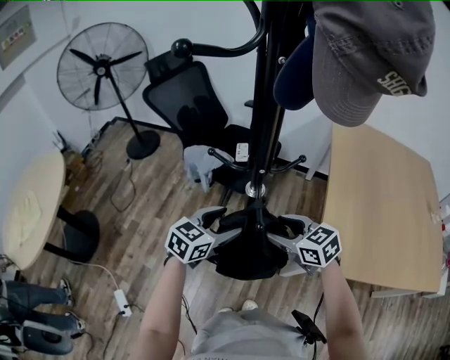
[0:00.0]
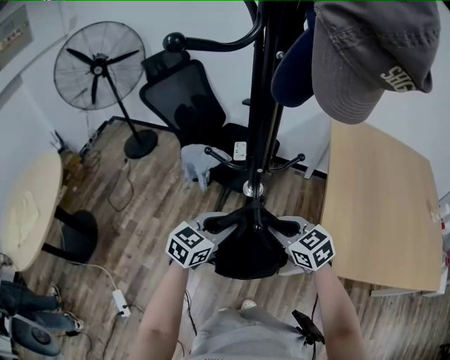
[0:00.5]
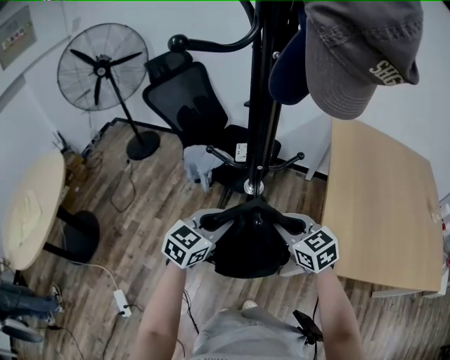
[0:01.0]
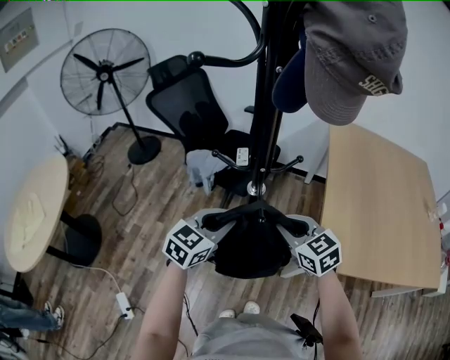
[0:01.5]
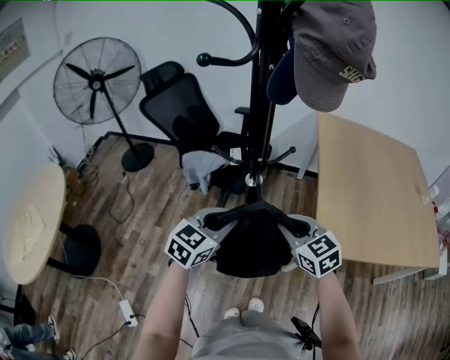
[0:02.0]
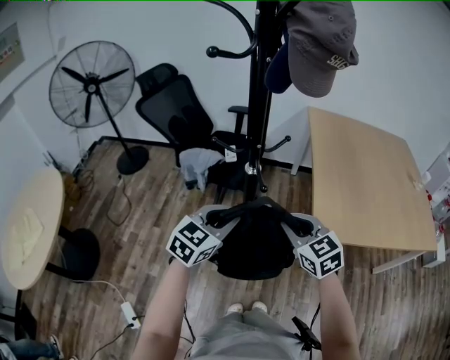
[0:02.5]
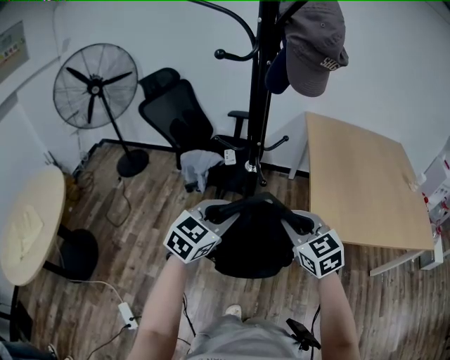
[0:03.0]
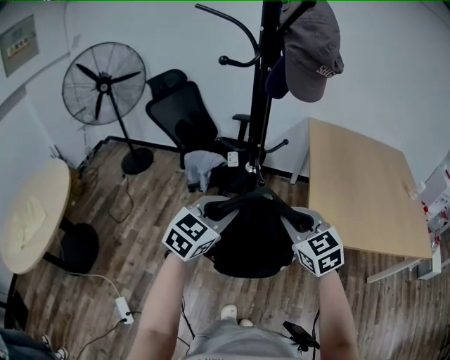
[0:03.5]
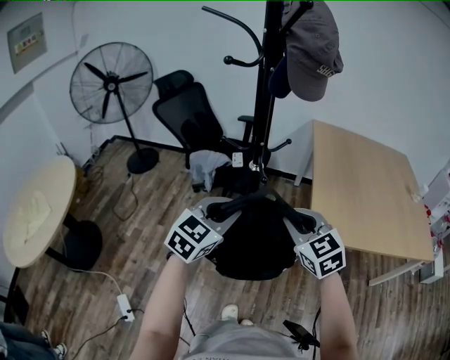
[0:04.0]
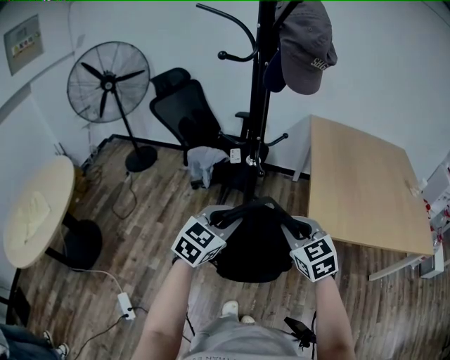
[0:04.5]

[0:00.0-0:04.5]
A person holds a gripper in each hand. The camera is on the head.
0:00.0 to 0:02.0: Both grippers travel together upward and backward, roughly 10 cm. The left gripper closes its fingers. The right gripper turns by roughly 20 degrees, and closes up.
0:02.0 to 0:04.5: Both grippers move backward, about 10 cm.

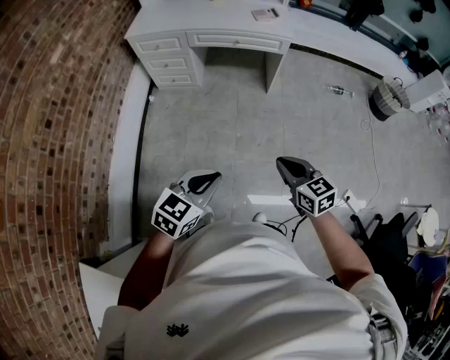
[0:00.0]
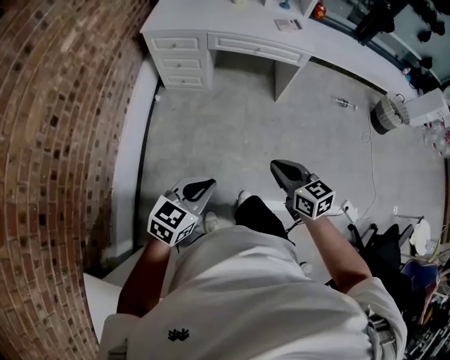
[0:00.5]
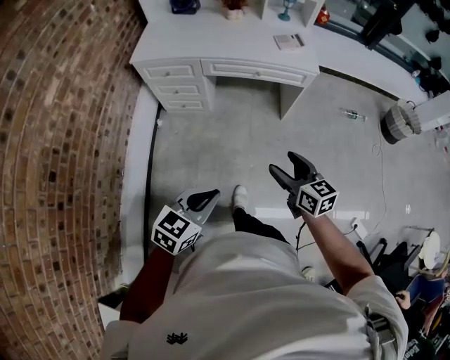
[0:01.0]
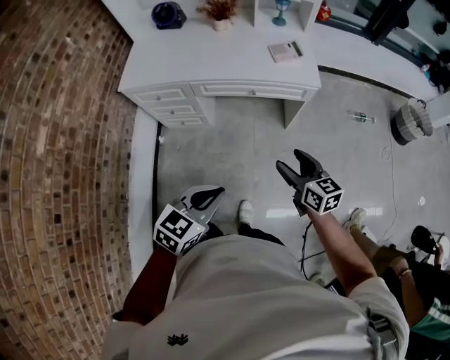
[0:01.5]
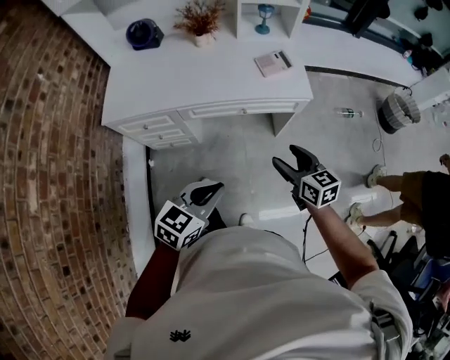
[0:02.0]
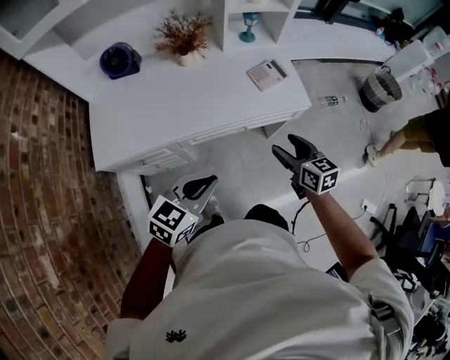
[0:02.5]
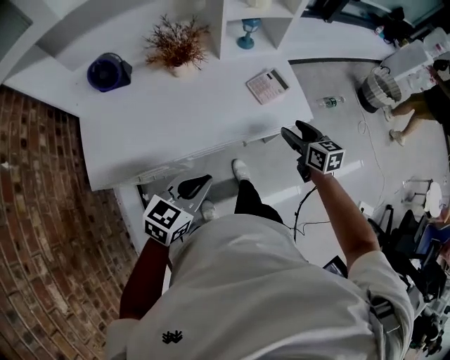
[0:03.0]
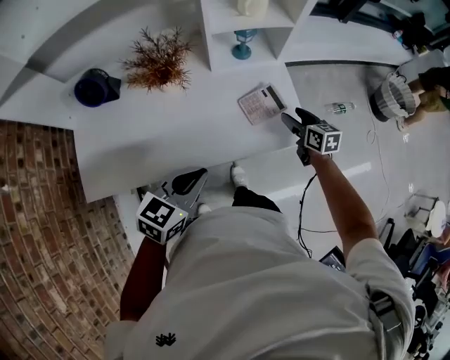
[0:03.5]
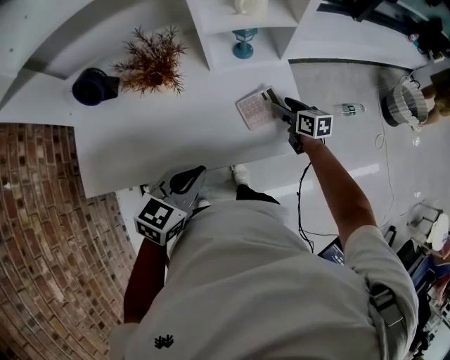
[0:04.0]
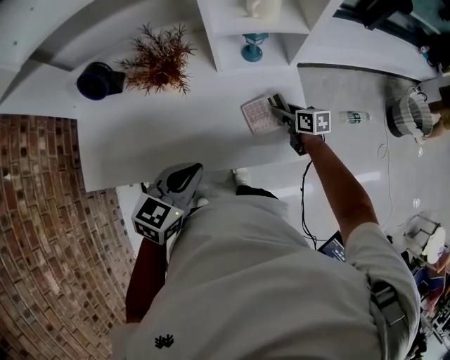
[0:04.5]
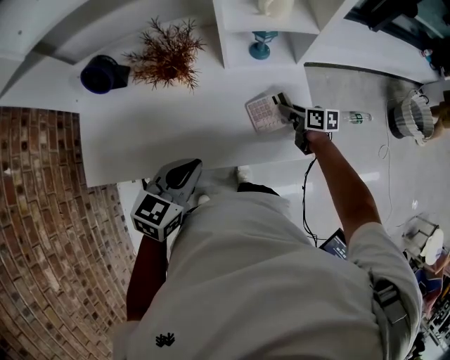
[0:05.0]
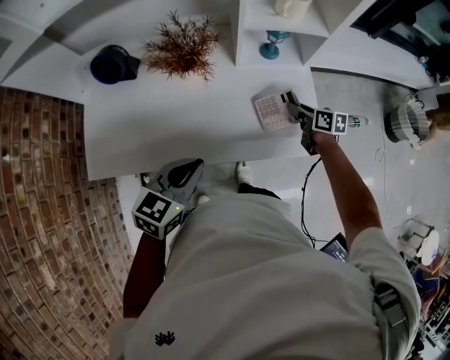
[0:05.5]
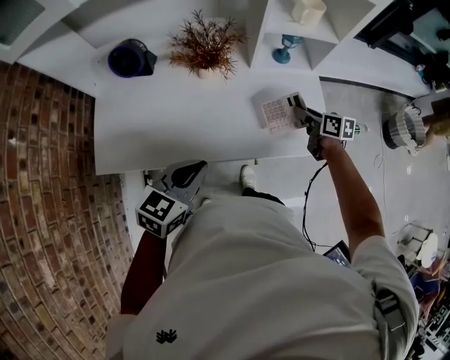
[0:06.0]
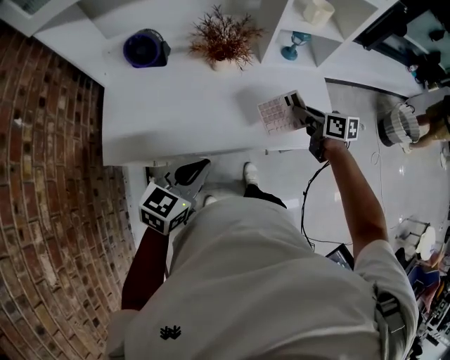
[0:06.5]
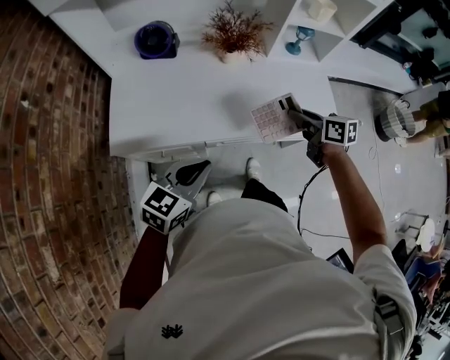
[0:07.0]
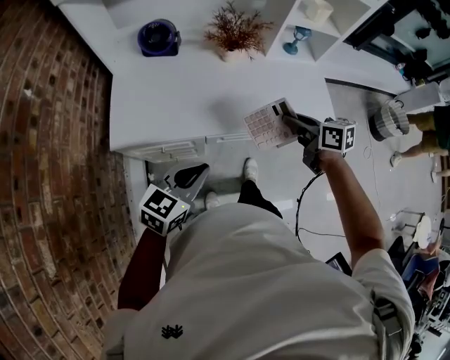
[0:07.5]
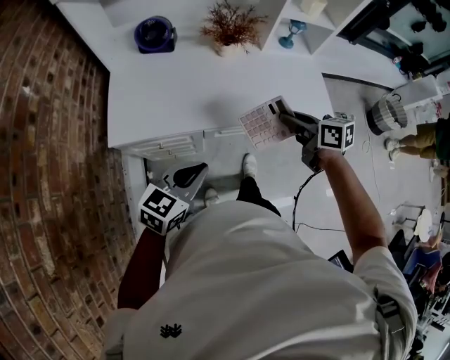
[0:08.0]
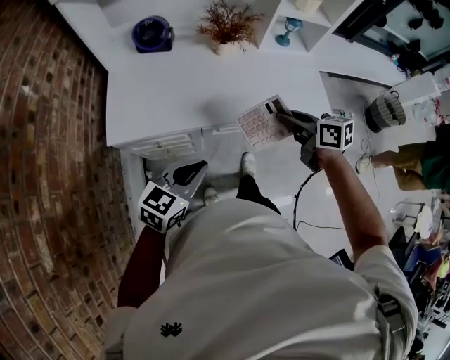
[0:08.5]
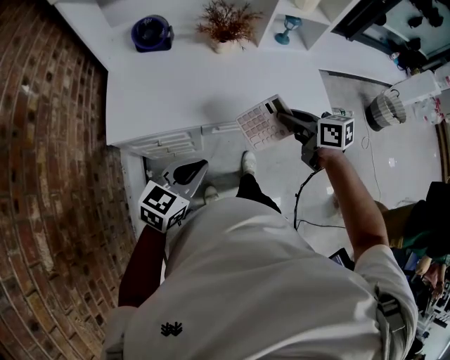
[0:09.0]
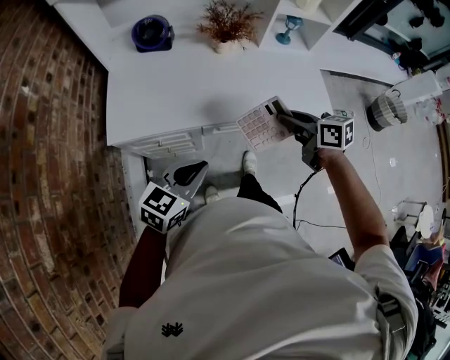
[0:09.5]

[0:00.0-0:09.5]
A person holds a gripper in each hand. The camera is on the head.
0:00.0 to 0:02.0: Both grippers are carried forward, some 50 cm. The right gripper opens up.
0:02.0 to 0:04.0: Both grippers move forward, some 40 cm.
0:04.0 to 0:05.5: The left gripper travels to the left by some 5 cm. The right gripper closes its fingers.
0:05.5 to 0:07.5: The right gripper goes about 35 cm to the left, backward and upward, while the left gripper travels backward and to the left by about 25 cm.
0:07.5 to 0:09.5: The grippers stay close to where they were, moving slightly.

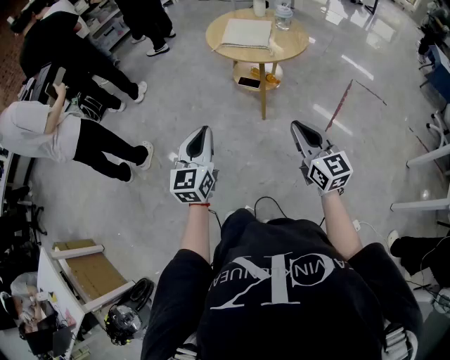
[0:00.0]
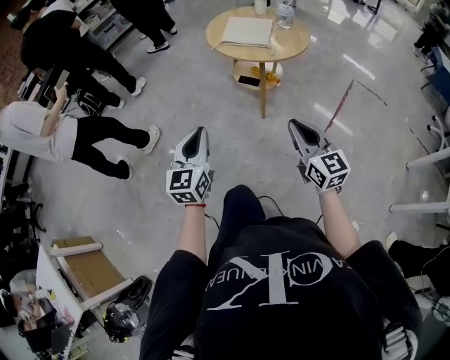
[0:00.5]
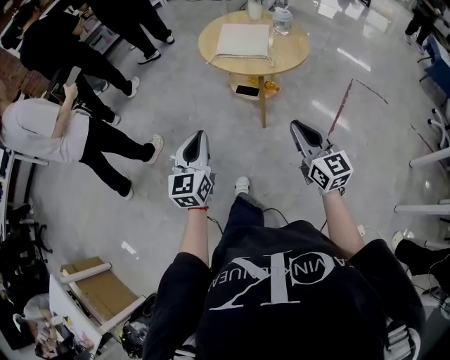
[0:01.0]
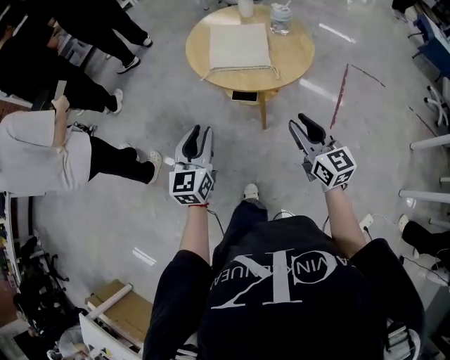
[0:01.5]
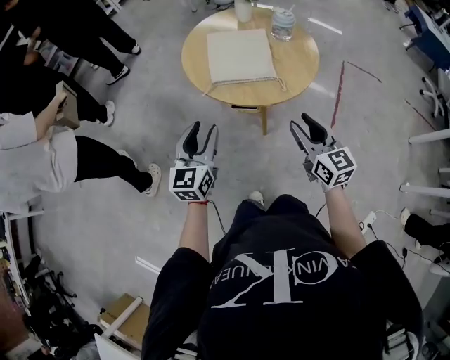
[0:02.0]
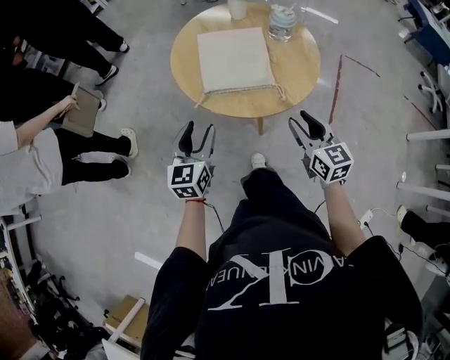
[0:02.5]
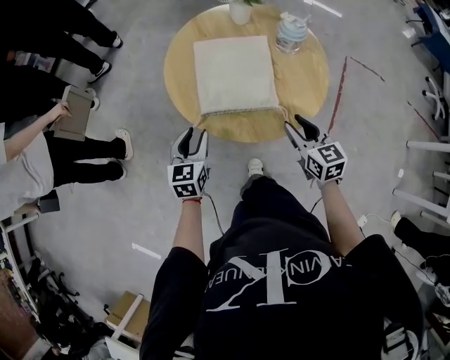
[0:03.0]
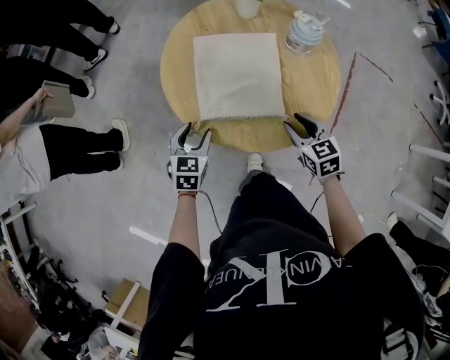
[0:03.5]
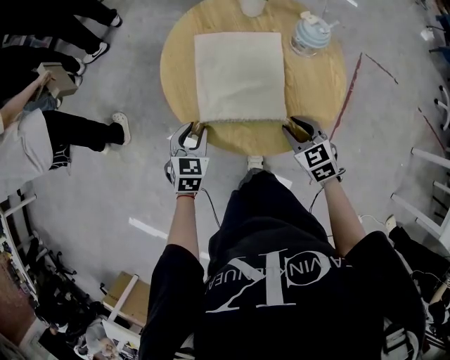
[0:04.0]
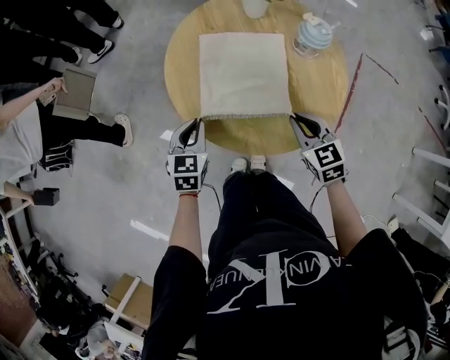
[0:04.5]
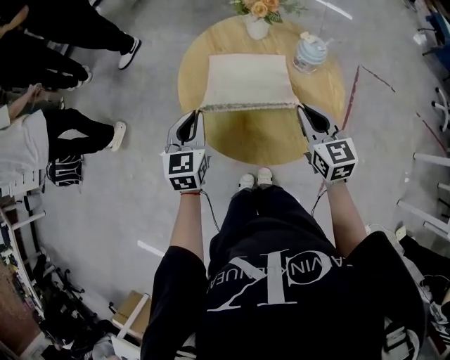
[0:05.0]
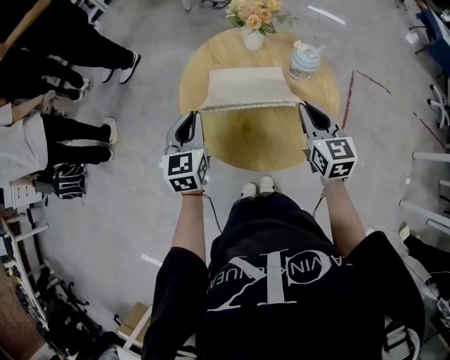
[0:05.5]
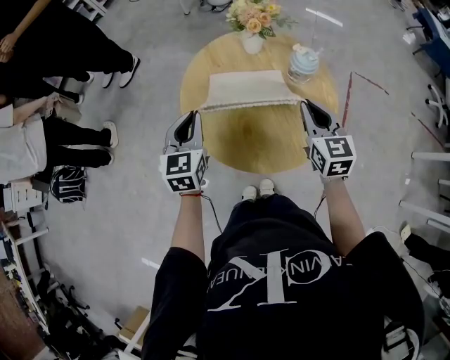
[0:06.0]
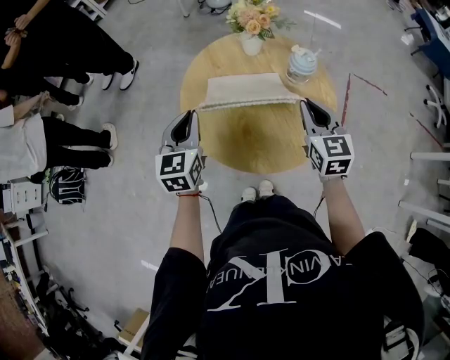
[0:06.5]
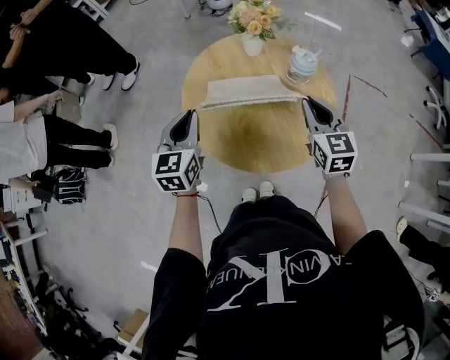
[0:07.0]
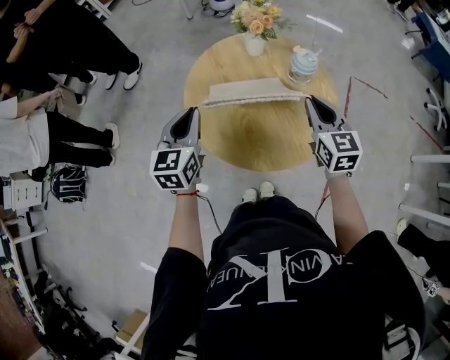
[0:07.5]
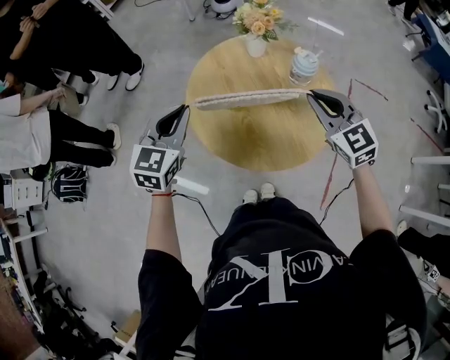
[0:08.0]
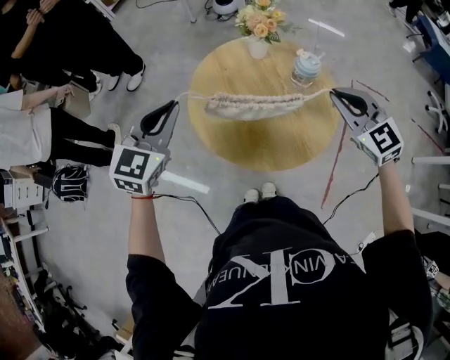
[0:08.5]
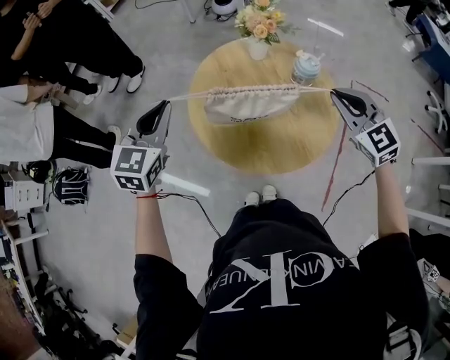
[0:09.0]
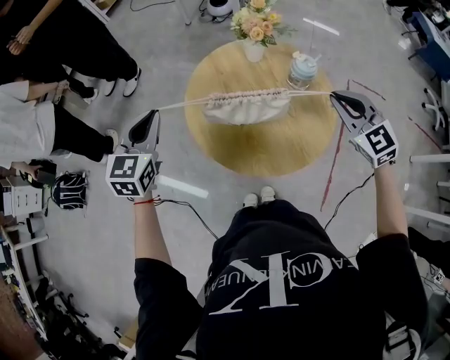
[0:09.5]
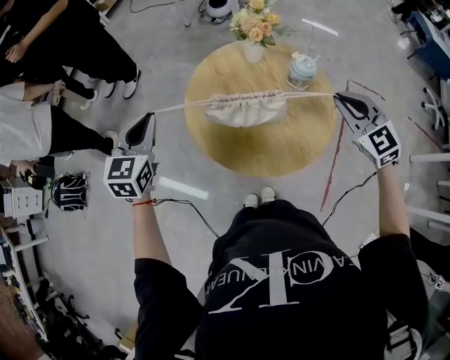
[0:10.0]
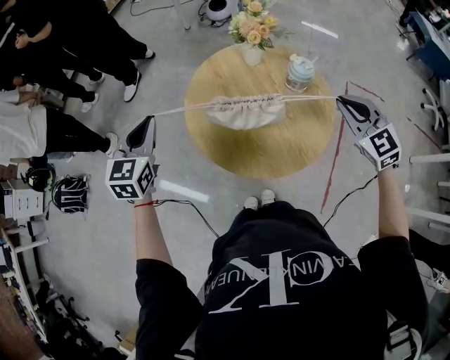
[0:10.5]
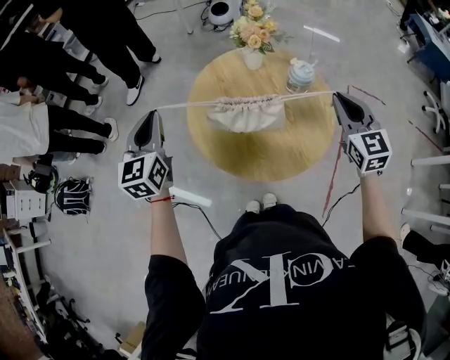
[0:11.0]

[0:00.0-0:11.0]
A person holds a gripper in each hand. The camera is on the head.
0:00.0 to 0:02.0: The grippers both shift forward by approximately 35 cm. The right gripper opens up; the left gripper opens.
0:02.0 to 0:03.5: Both grippers travel together forward and downward, about 25 cm. The right gripper turns by about 30 degrees; the left gripper tips its fingers downward by some 30 degrees.
0:03.5 to 0:05.5: The two grippers go approximately 20 cm upward and forward. The right gripper changes its angle by some 20 degrees, and closes its fingers, while the left gripper changes its angle by some 20 degrees, and closes its fingers.
0:05.5 to 0:07.5: The grippers stay close to where they were, moving slightly.
0:07.5 to 0:09.0: The right gripper is displaced upward by some 5 cm, and swivels about 30 degrees. The left gripper goes some 10 cm upward and to the left.
0:09.0 to 0:11.0: The left gripper turns by some 20 degrees. The right gripper swivels approximately 20 degrees.

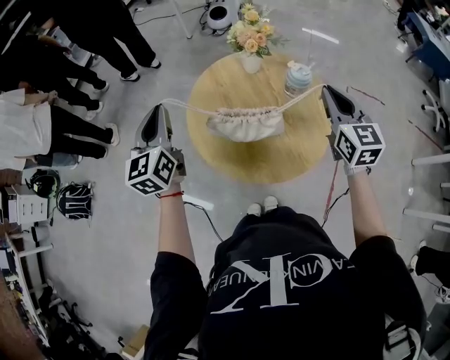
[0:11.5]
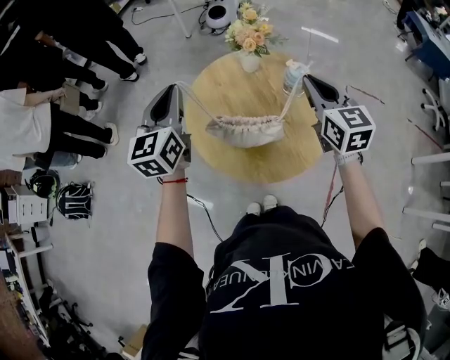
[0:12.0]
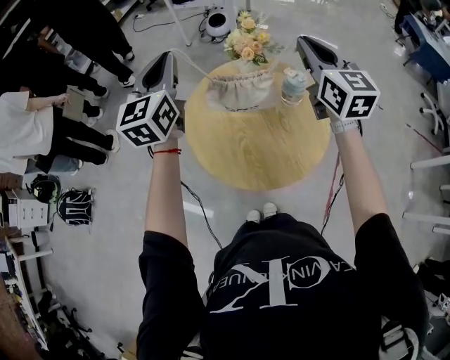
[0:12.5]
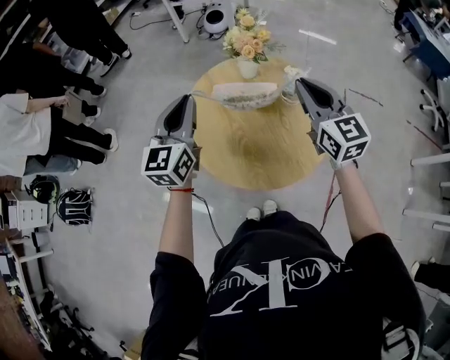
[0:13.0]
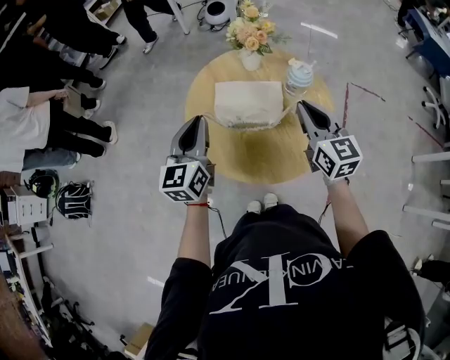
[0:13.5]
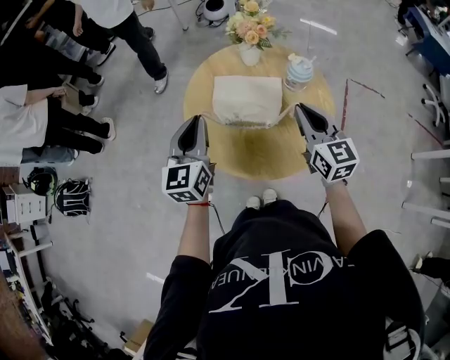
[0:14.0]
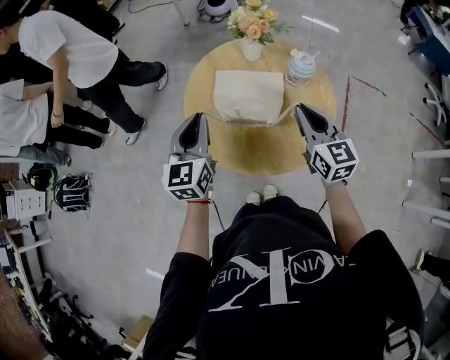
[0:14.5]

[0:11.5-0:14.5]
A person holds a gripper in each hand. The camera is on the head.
0:11.5 to 0:13.0: The left gripper shifts some 10 cm to the right, and travels upward and back again, some 10 cm each way; the right gripper goes approximately 5 cm to the left, and goes upward and returns, some 10 cm each way.
0:13.0 to 0:14.5: Both grippers move downward and backward, approximately 10 cm.
